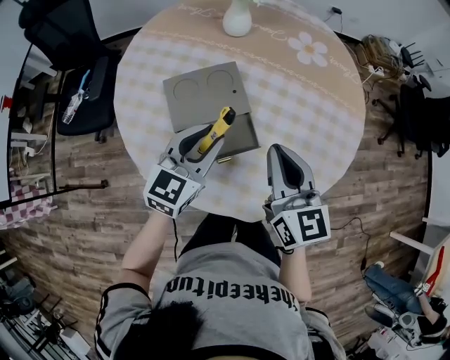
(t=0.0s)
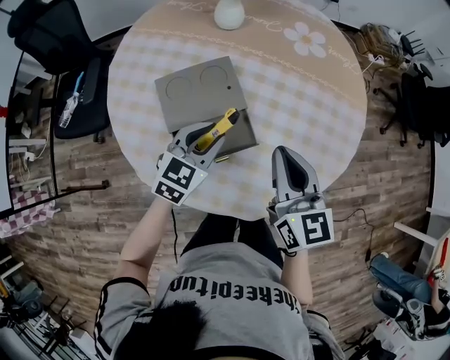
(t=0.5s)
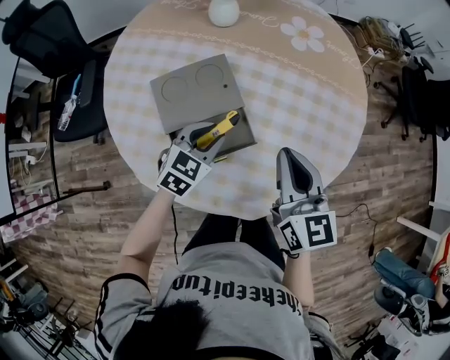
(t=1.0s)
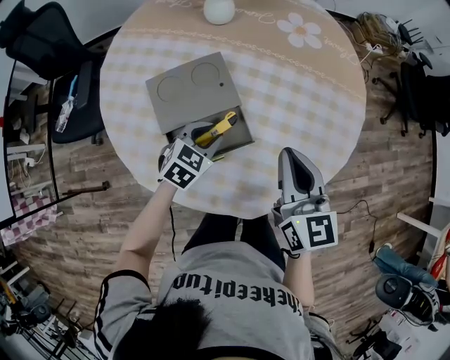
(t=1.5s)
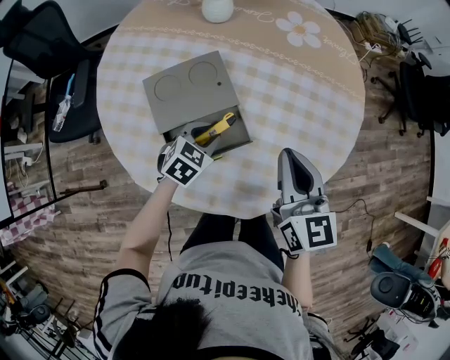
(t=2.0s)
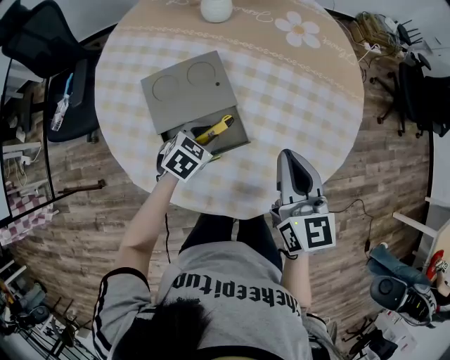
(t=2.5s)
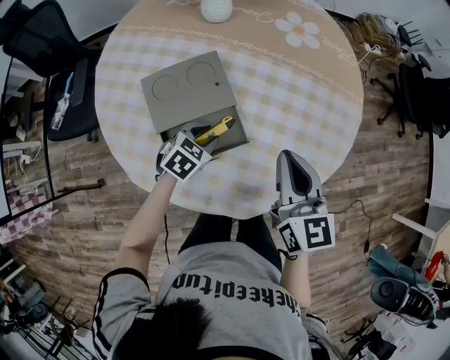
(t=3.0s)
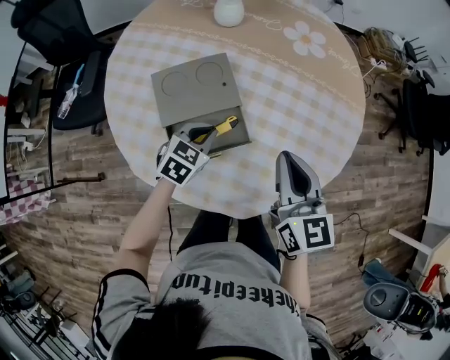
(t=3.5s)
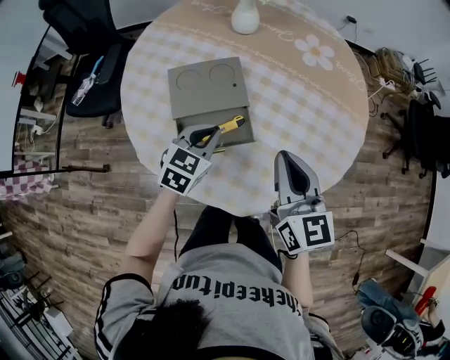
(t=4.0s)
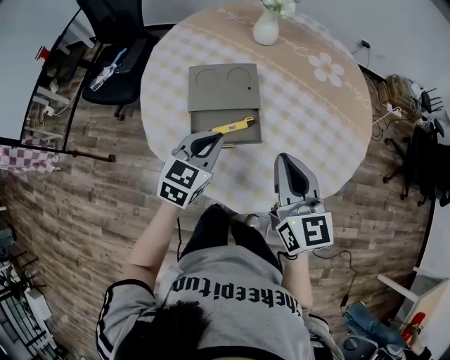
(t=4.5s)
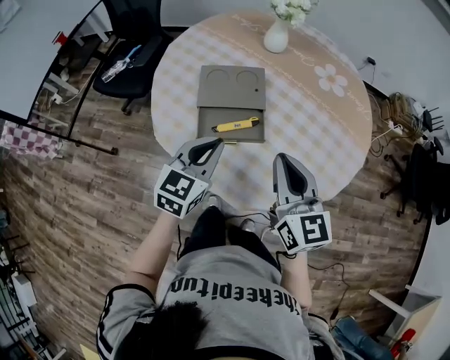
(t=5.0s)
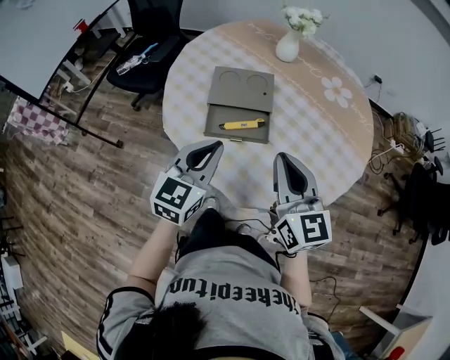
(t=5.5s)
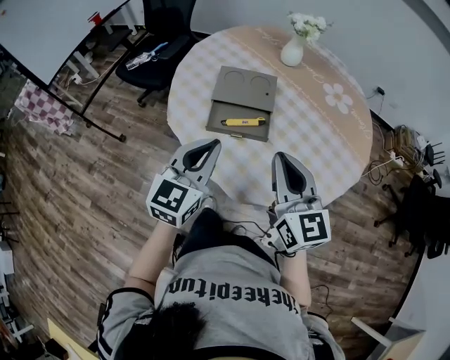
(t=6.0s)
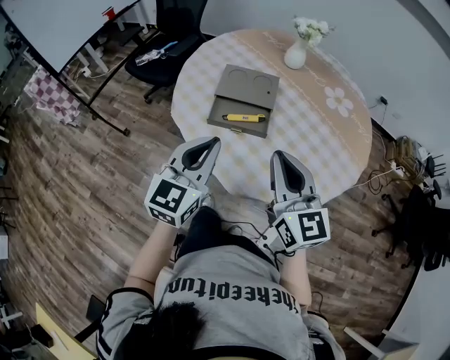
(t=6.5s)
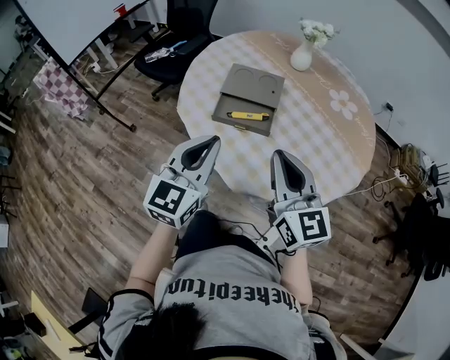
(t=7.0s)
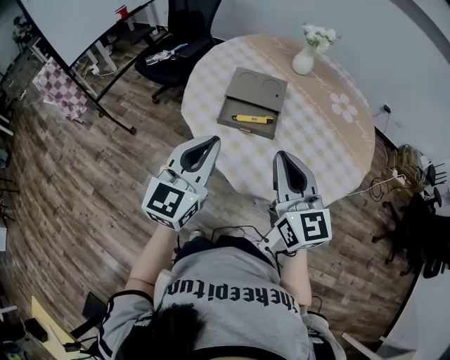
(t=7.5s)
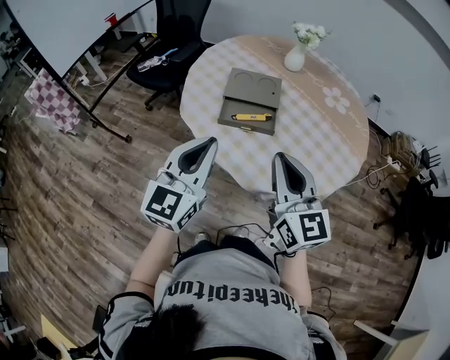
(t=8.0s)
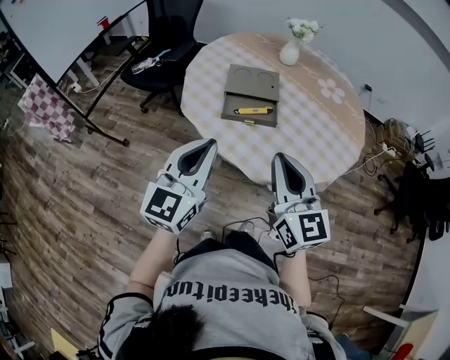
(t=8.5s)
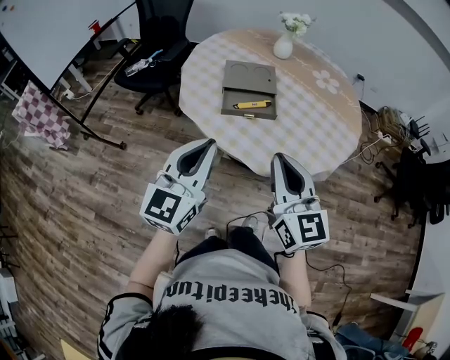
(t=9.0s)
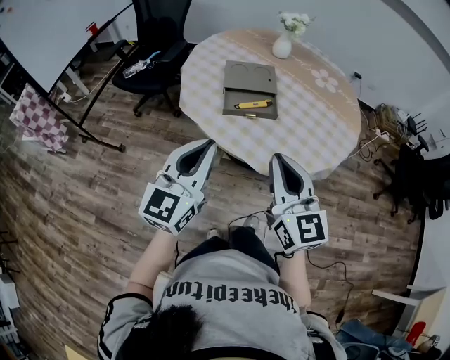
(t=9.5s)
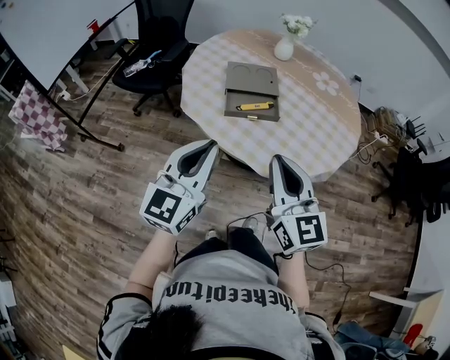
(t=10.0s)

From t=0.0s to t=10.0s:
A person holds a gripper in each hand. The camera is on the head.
From t=0.0s to t=2.0s: The right gripper travels to the right by approximately 5 cm; the left gripper goes roughly 15 cm downward, and tips its fingers downward by approximately 30 degrees.
From t=2.0s to t=4.0s: The left gripper is displaced upward by roughly 10 cm, turns by approximately 20 degrees, and closes.
From t=4.0s to t=6.0s: The right gripper travels backward and upward by about 10 cm, and turns by about 20 degrees. Meanwhile the left gripper goes roughly 25 cm backward and upward, and turns by approximately 40 degrees.
From t=6.0s to t=8.0s: The right gripper travels backward by approximately 10 cm, while the left gripper heads backward and upward, covering roughly 10 cm.
From t=8.0s to t=10.0s: Both grippers move to the left and backward, about 10 cm.

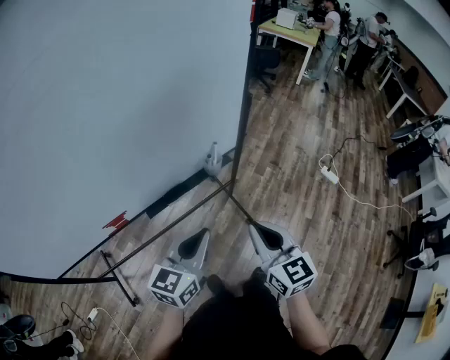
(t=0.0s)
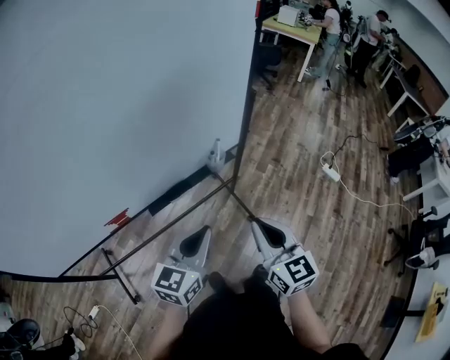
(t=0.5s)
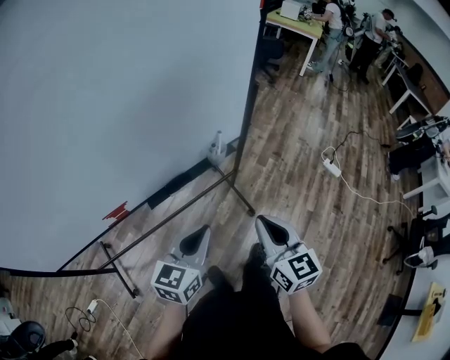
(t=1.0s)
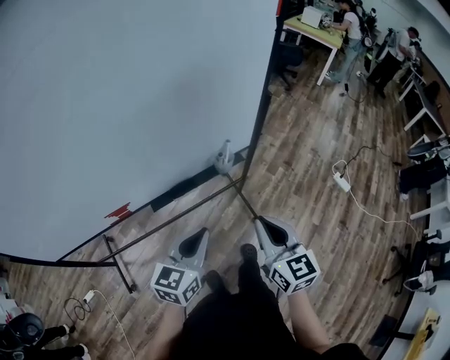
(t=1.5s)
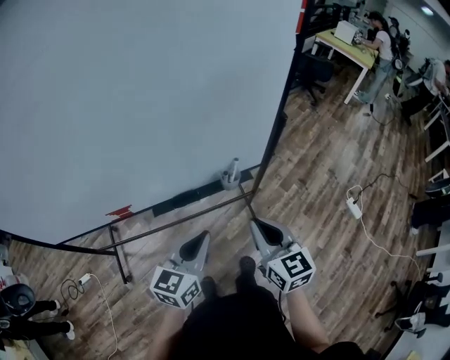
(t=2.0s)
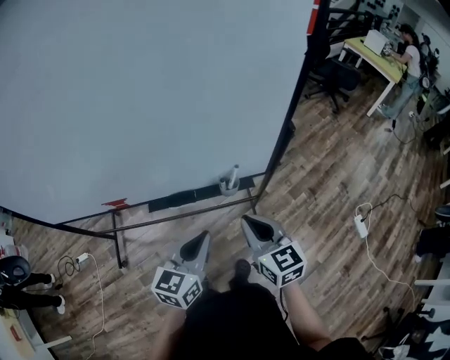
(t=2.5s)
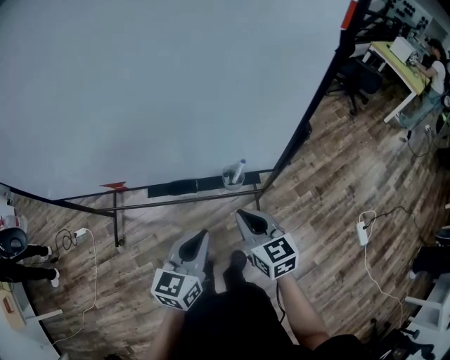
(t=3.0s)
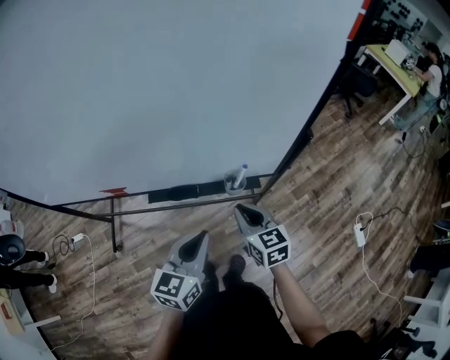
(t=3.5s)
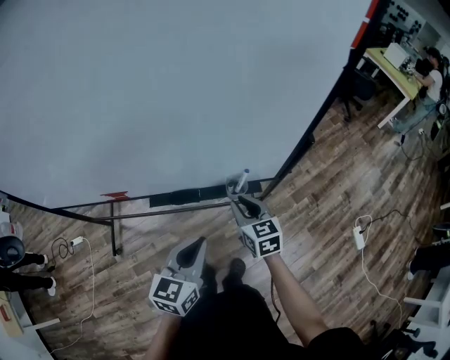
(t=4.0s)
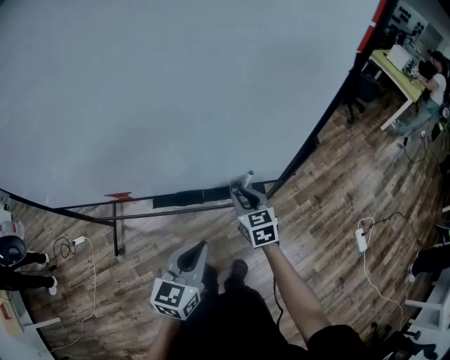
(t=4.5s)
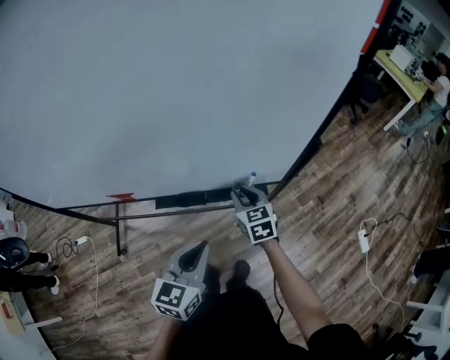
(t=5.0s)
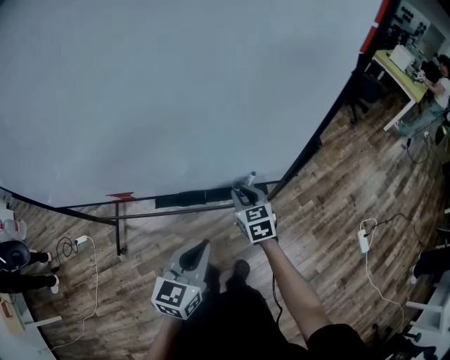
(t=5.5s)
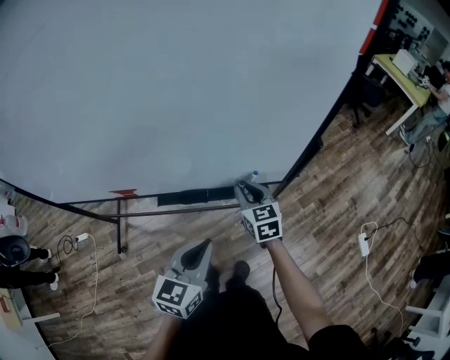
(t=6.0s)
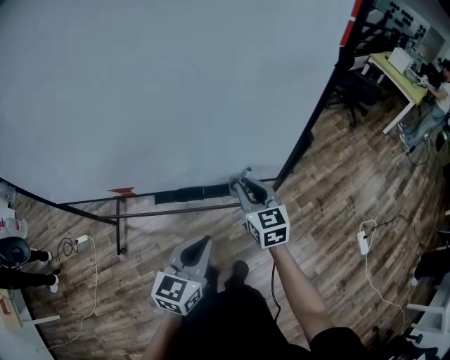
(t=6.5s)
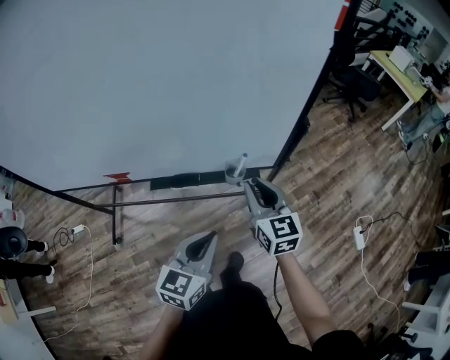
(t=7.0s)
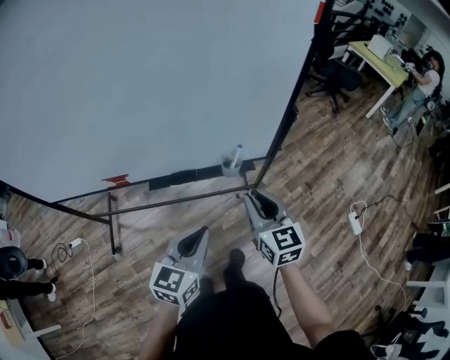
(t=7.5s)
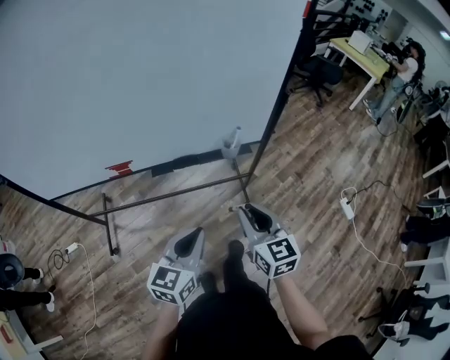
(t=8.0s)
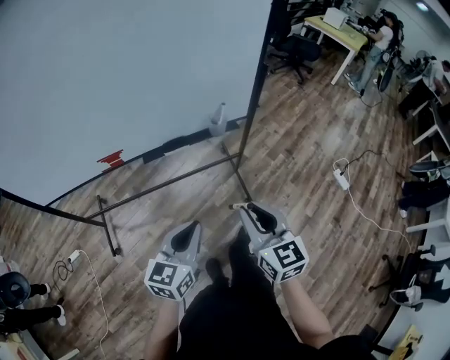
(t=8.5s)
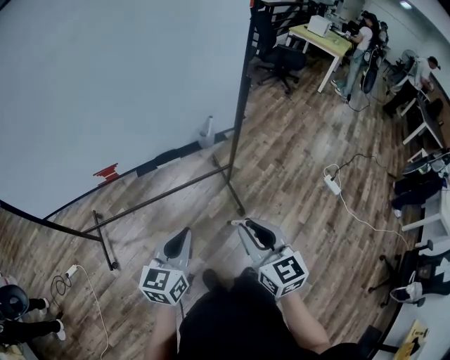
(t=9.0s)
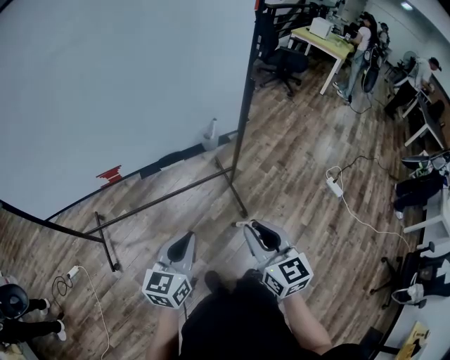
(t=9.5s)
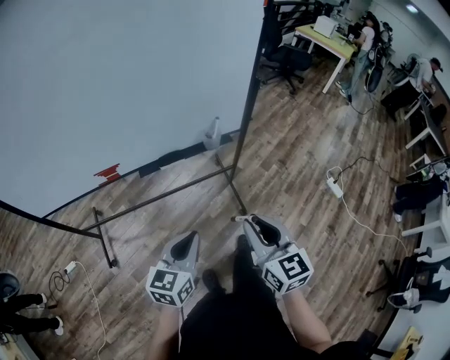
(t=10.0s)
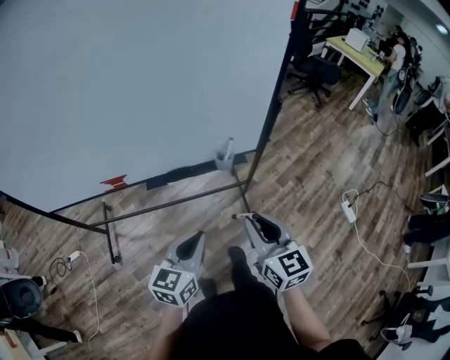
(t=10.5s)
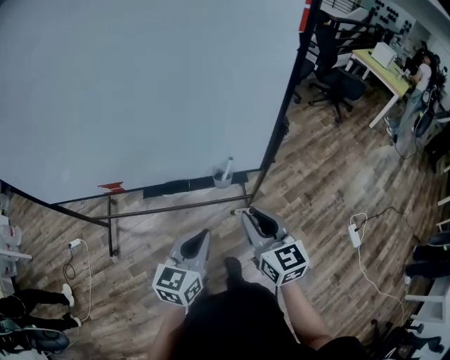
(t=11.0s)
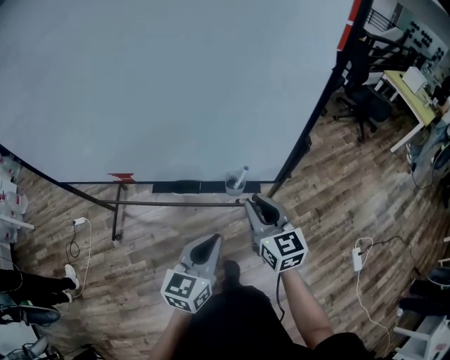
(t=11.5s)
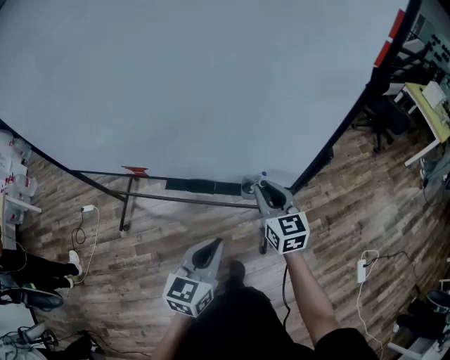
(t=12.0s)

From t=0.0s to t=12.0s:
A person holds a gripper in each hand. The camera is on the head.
From t=0.0s to t=2.0s: The left gripper shifts some 10 cm forward; the right gripper is displaced forward by some 10 cm.
From t=2.0s to t=4.0s: The right gripper shifts some 20 cm forward and downward. Meanwhile the left gripper changes place by some 5 cm.
From t=4.0s to t=6.0s: The right gripper ends up about 5 cm from where it was.
From t=6.0s to t=8.0s: The left gripper heads backward, covering some 15 cm. Meanwhile the right gripper travels backward by some 30 cm.
From t=8.0s to t=10.0s: The right gripper shifts approximately 10 cm backward. Meanwhile the left gripper moves roughly 5 cm.
From t=10.0s to t=12.0s: The left gripper is displaced forward and to the right by approximately 20 cm, and swivels roughly 20 degrees. The right gripper is displaced forward by some 35 cm, and swivels approximately 20 degrees.

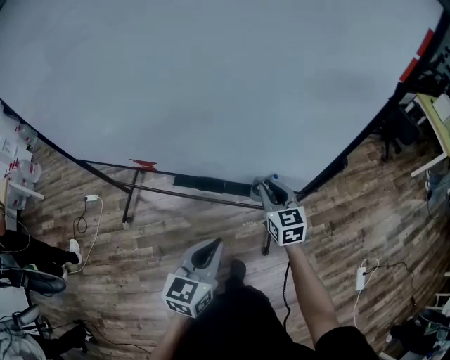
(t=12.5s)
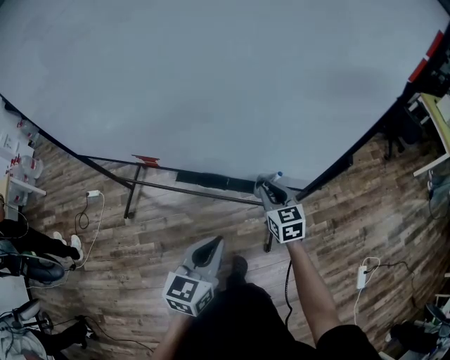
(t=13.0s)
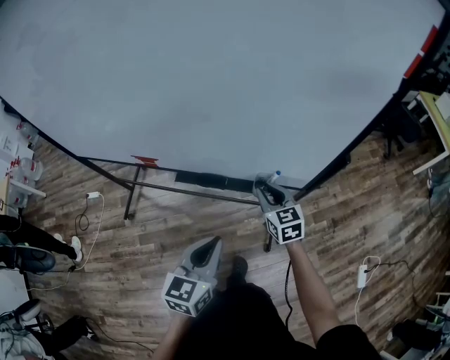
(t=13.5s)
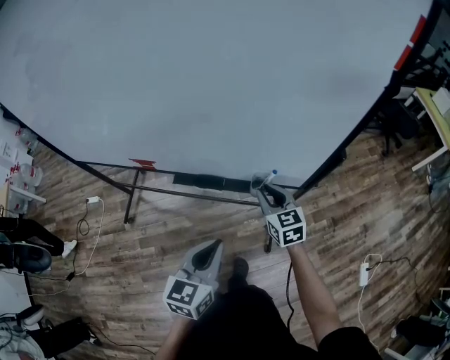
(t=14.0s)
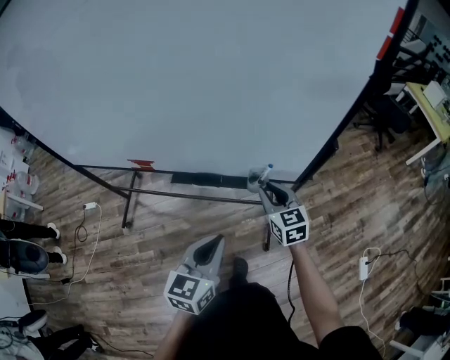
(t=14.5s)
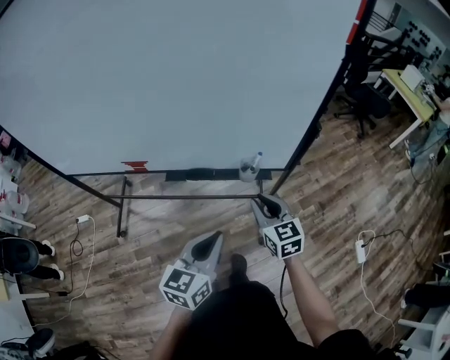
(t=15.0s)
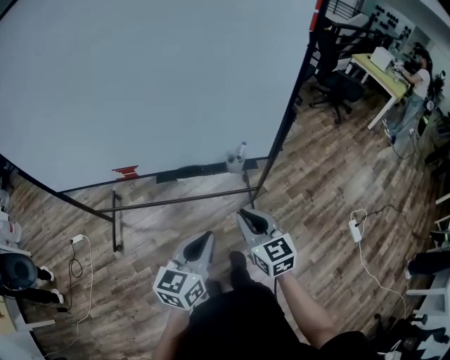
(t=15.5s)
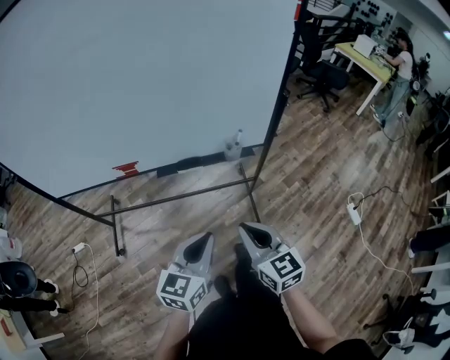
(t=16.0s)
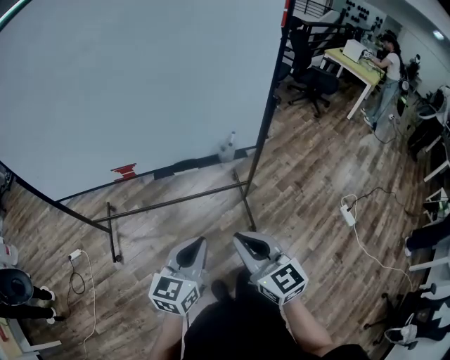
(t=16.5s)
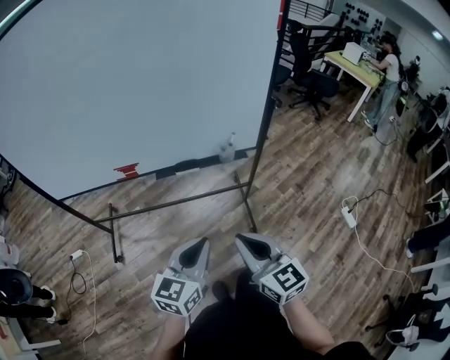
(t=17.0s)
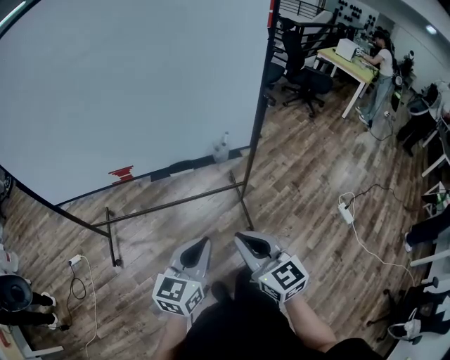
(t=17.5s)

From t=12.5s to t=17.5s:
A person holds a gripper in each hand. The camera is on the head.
From t=12.5s to t=15.0s: The left gripper shifts roughly 5 cm backward, while the right gripper goes approximately 15 cm backward.
From t=15.0s to t=17.5s: The right gripper goes approximately 25 cm backward; the left gripper goes roughly 15 cm backward.
